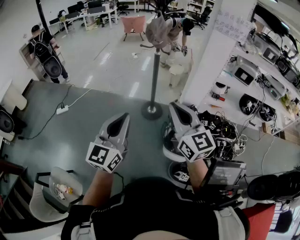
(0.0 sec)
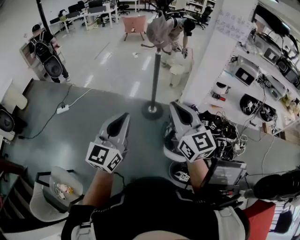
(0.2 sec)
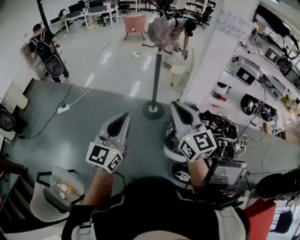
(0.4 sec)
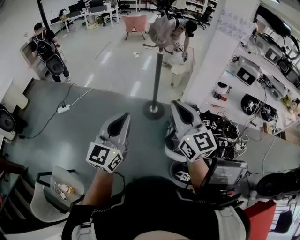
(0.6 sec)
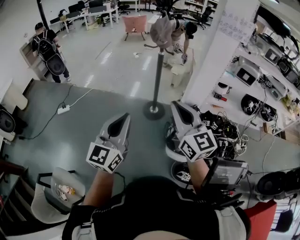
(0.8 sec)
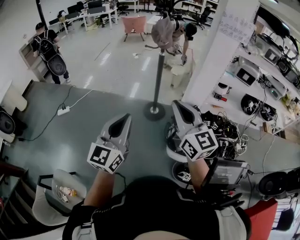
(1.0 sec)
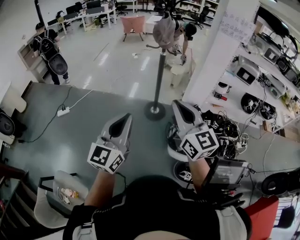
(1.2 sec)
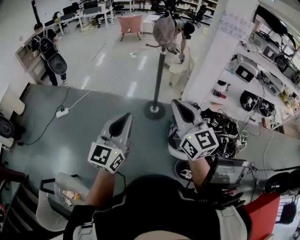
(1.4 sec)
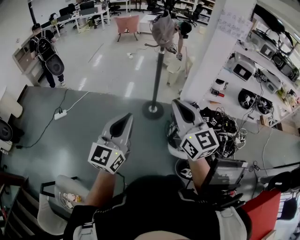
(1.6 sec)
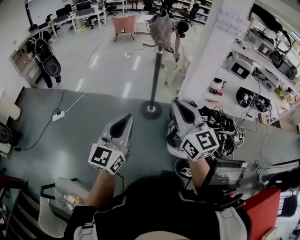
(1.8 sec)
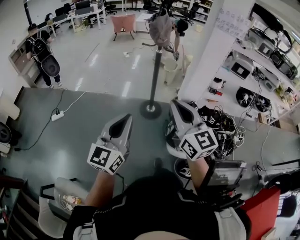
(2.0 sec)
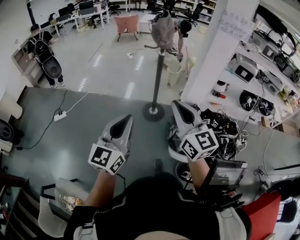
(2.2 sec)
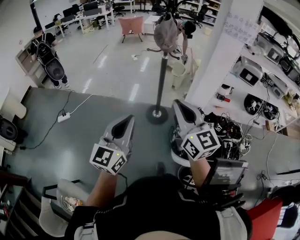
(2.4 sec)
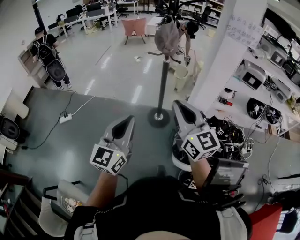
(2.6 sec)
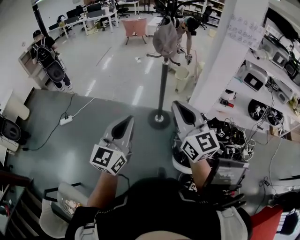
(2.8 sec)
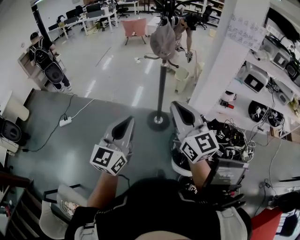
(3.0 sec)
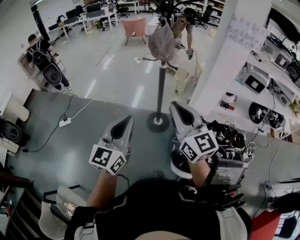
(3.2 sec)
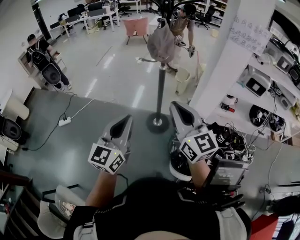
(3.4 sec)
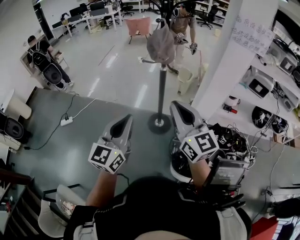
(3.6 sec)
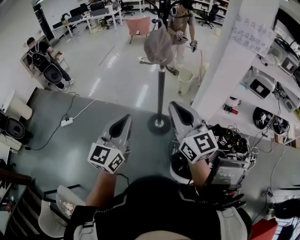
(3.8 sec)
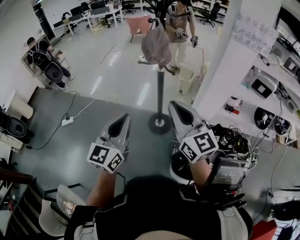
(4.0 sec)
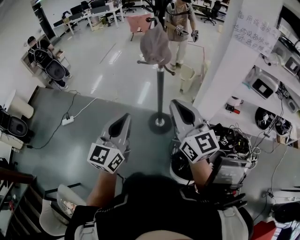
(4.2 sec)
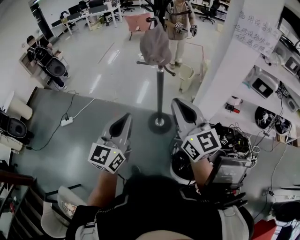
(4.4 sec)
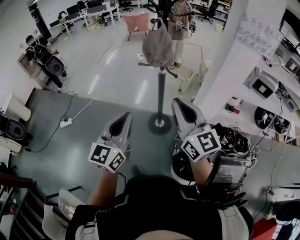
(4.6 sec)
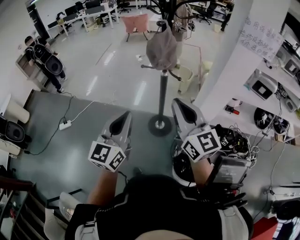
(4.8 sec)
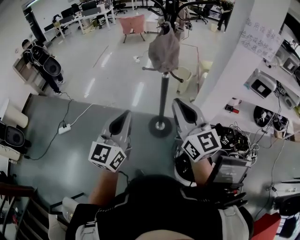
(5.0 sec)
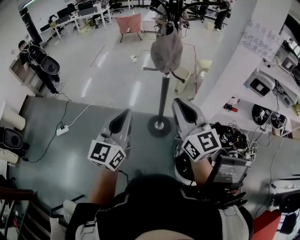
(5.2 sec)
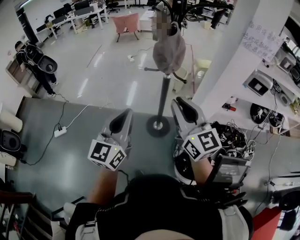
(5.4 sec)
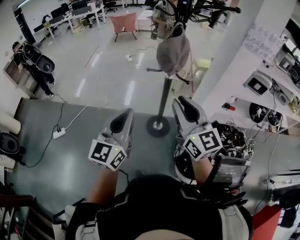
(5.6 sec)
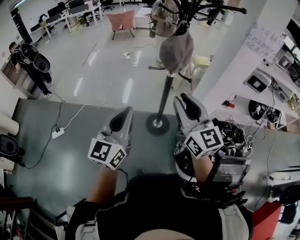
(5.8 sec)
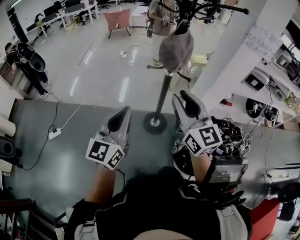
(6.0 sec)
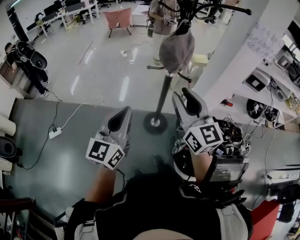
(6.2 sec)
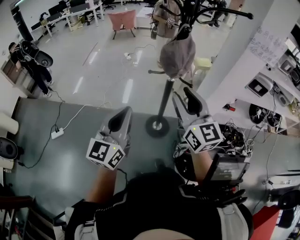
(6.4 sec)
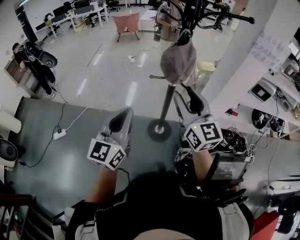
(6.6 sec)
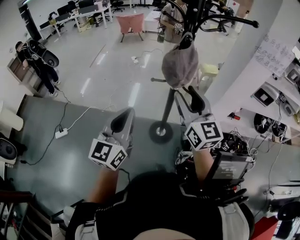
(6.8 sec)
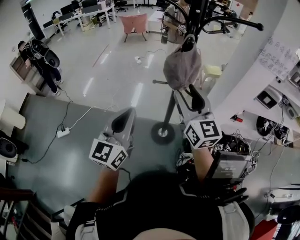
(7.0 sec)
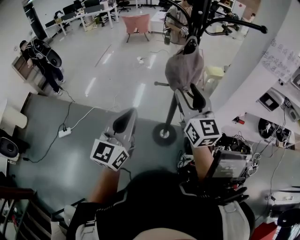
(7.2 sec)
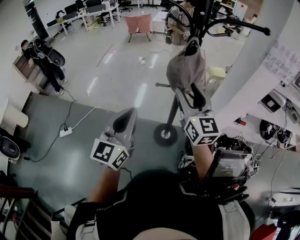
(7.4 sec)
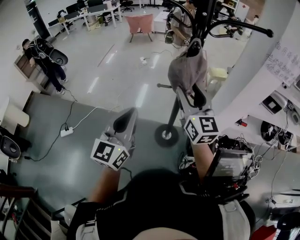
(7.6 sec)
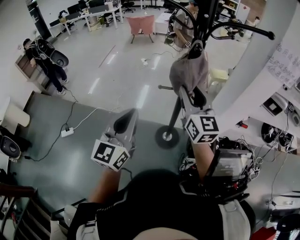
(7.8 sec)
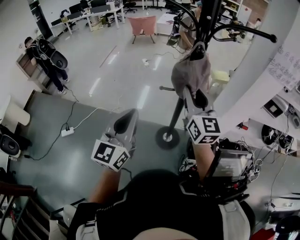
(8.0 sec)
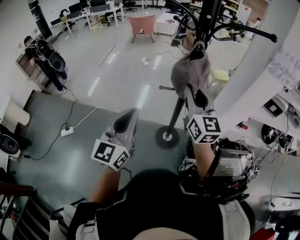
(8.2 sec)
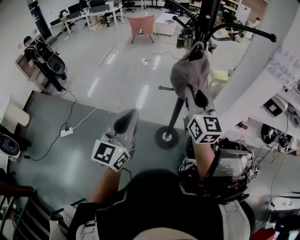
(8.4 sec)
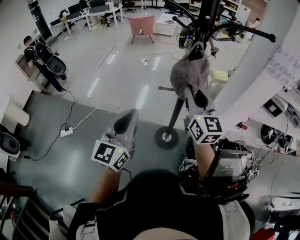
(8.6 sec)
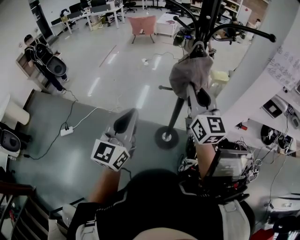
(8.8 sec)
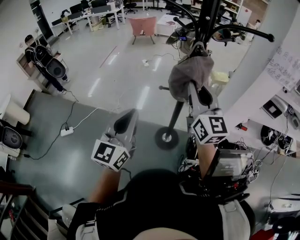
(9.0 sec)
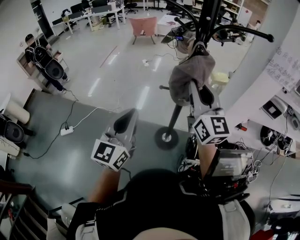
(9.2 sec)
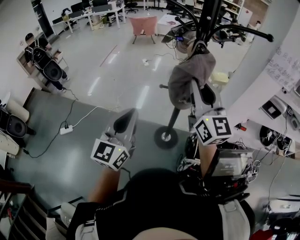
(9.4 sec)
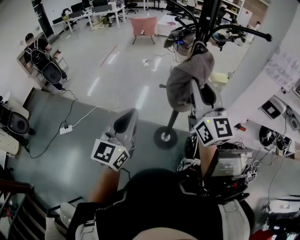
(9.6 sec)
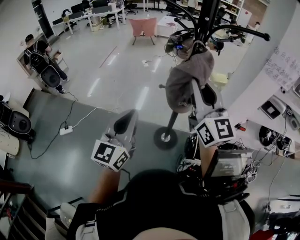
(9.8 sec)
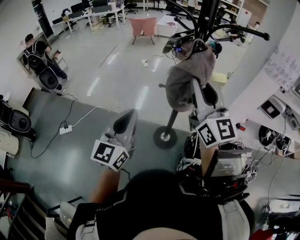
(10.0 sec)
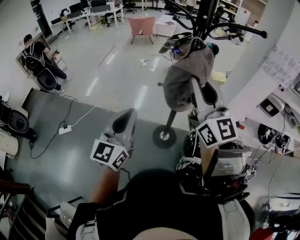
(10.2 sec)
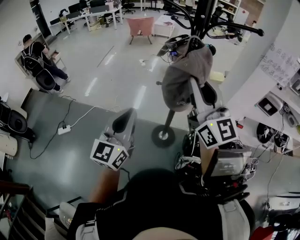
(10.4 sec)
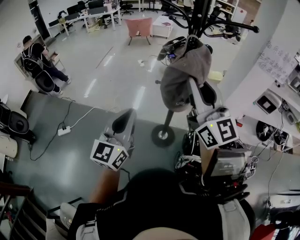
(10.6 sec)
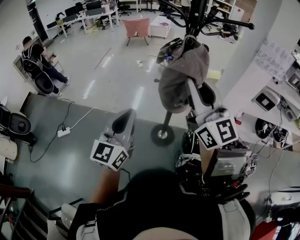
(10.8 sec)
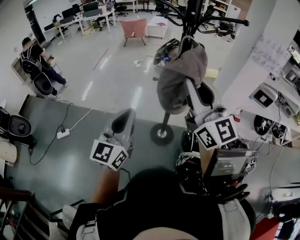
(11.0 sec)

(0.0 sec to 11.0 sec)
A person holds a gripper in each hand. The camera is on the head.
0.0 sec - 1.6 sec: Both grippers travel together to the left, some 5 cm.
1.6 sec - 3.2 sec: The two grippers go approximately 15 cm forward.
3.2 sec - 4.8 sec: Both grippers move forward, some 15 cm.
4.8 sec - 6.2 sec: Both grippers travel together to the left and forward, approximately 10 cm. The right gripper opens.
6.2 sec - 7.8 sec: The left gripper is displaced forward by approximately 5 cm. The right gripper goes approximately 15 cm forward.
7.8 sec - 9.4 sec: The right gripper is displaced upward by some 5 cm.
9.4 sec - 11.0 sec: The right gripper travels backward by roughly 10 cm, while the left gripper shifts roughly 5 cm backward.

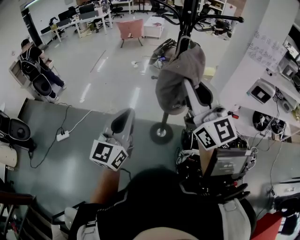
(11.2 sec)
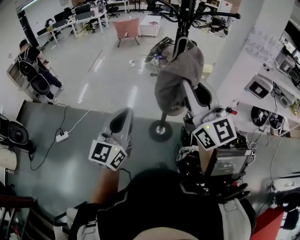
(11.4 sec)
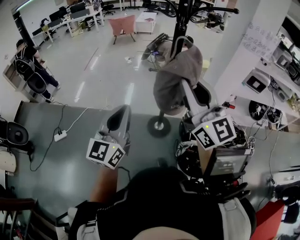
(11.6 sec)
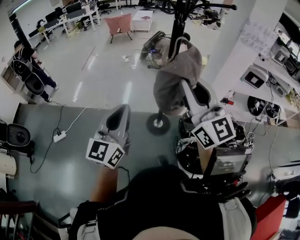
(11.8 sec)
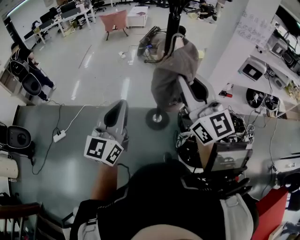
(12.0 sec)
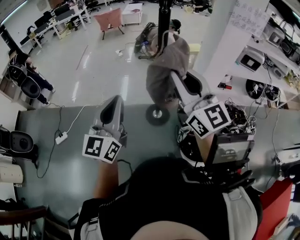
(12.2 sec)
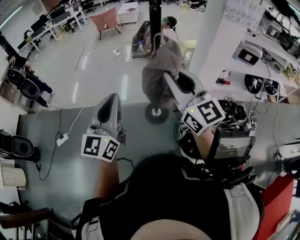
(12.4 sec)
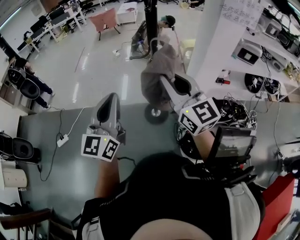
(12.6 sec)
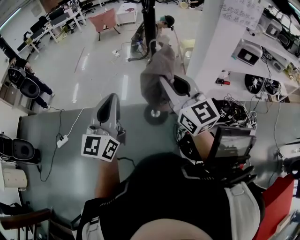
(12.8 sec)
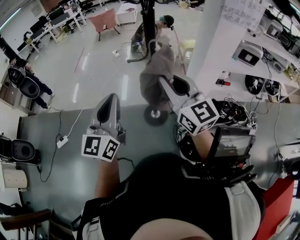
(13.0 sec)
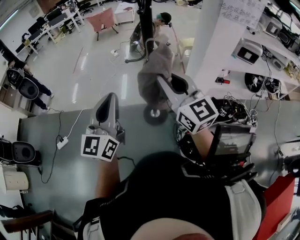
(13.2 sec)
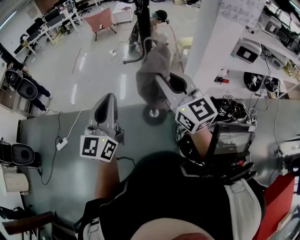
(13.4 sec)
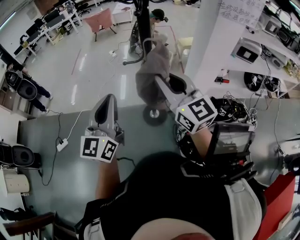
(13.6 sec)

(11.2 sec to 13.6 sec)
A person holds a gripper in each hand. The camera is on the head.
11.2 sec - 12.4 sec: The right gripper moves downward, roughly 5 cm.
12.4 sec - 13.6 sec: The grippers both shift forward by approximately 5 cm.

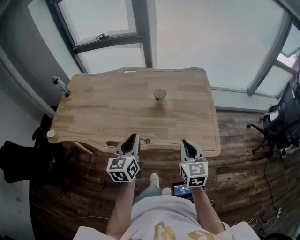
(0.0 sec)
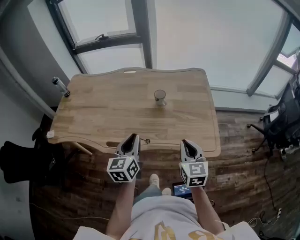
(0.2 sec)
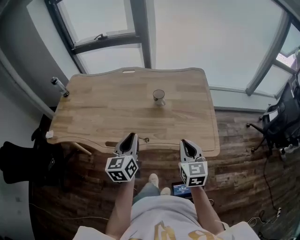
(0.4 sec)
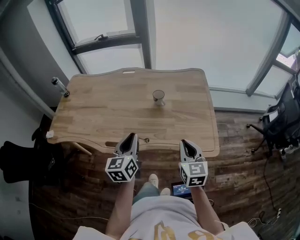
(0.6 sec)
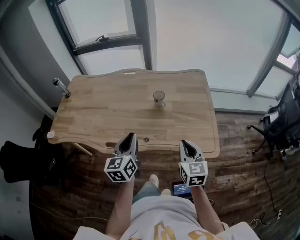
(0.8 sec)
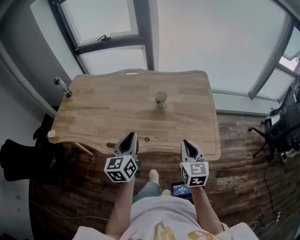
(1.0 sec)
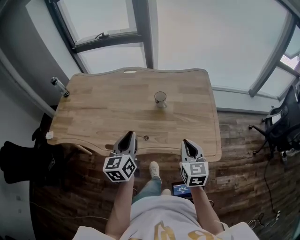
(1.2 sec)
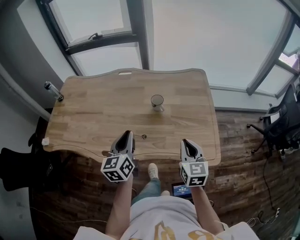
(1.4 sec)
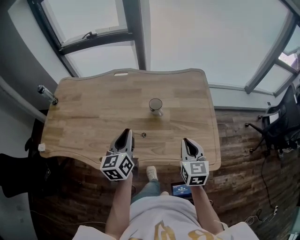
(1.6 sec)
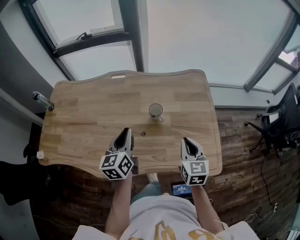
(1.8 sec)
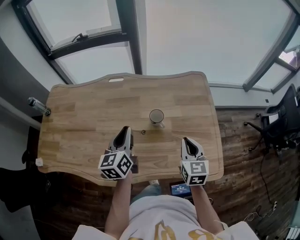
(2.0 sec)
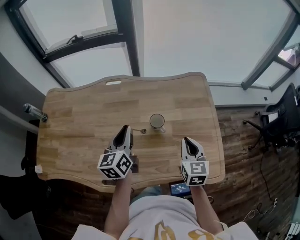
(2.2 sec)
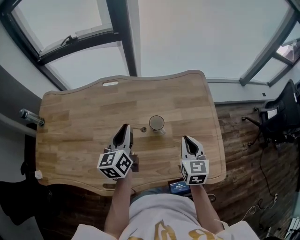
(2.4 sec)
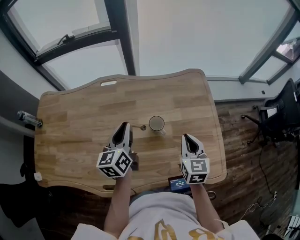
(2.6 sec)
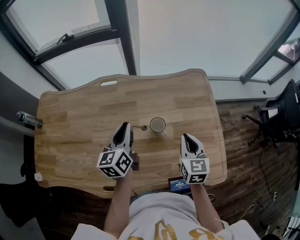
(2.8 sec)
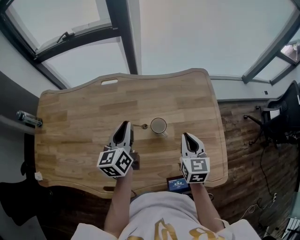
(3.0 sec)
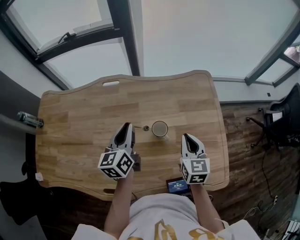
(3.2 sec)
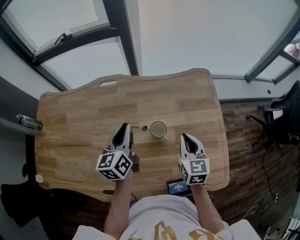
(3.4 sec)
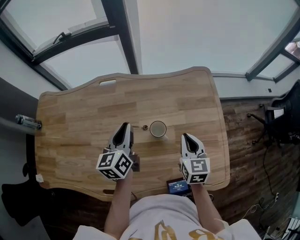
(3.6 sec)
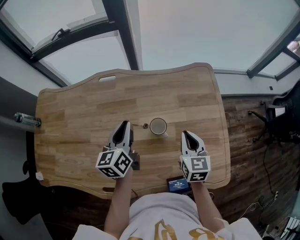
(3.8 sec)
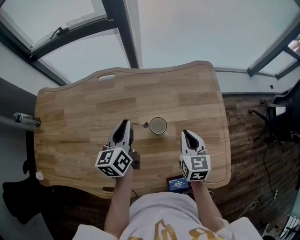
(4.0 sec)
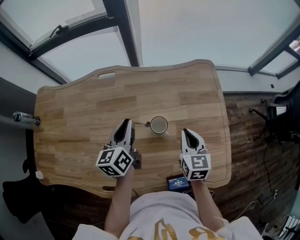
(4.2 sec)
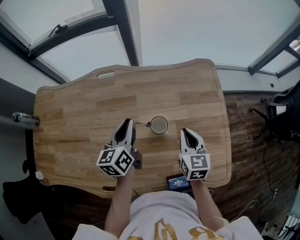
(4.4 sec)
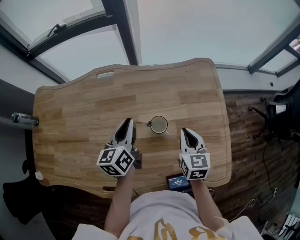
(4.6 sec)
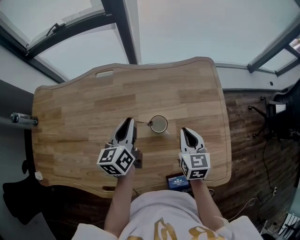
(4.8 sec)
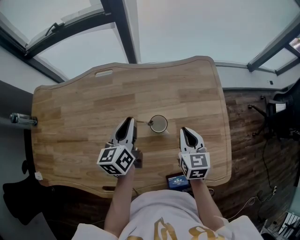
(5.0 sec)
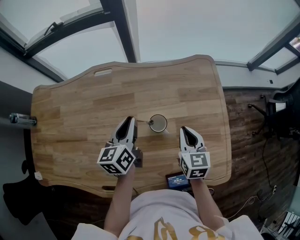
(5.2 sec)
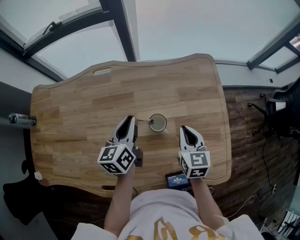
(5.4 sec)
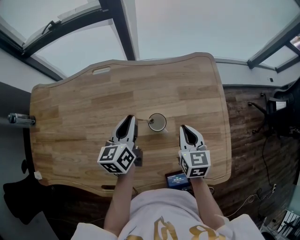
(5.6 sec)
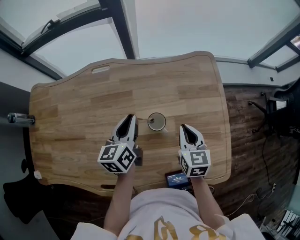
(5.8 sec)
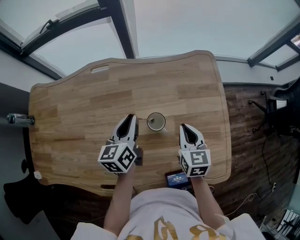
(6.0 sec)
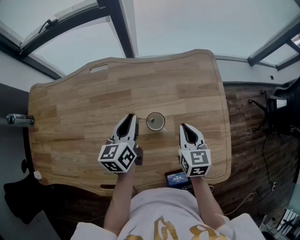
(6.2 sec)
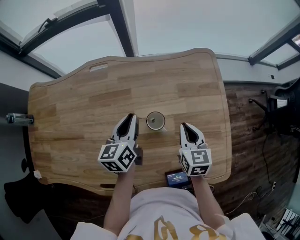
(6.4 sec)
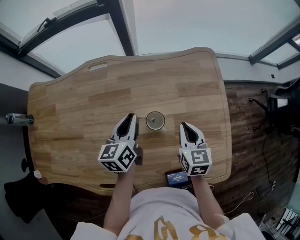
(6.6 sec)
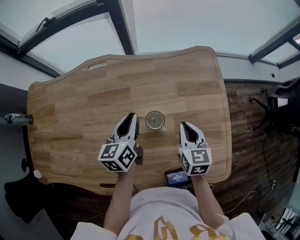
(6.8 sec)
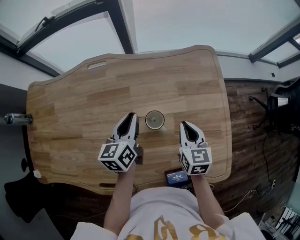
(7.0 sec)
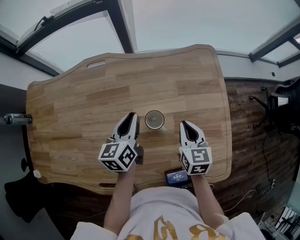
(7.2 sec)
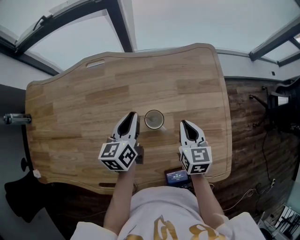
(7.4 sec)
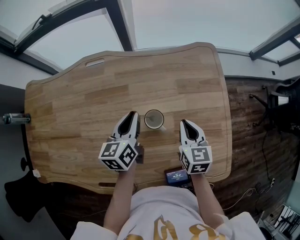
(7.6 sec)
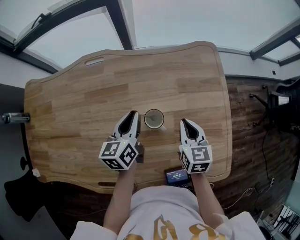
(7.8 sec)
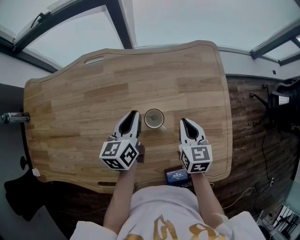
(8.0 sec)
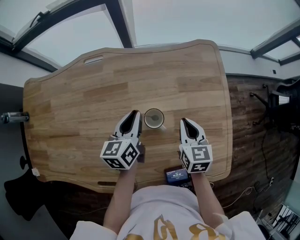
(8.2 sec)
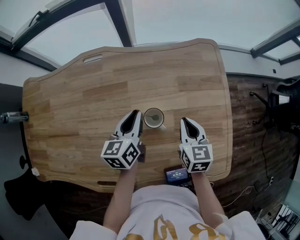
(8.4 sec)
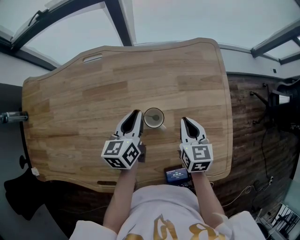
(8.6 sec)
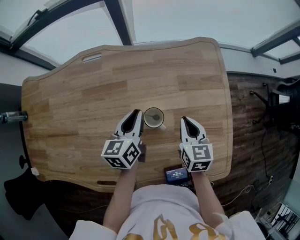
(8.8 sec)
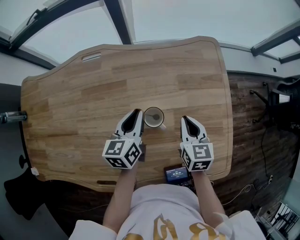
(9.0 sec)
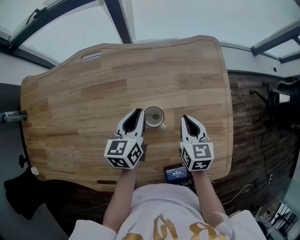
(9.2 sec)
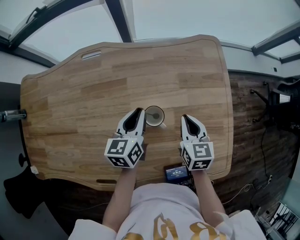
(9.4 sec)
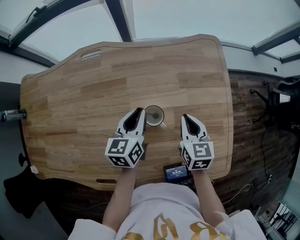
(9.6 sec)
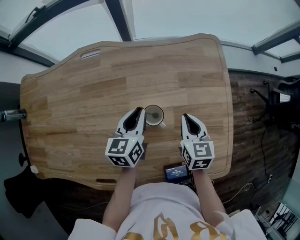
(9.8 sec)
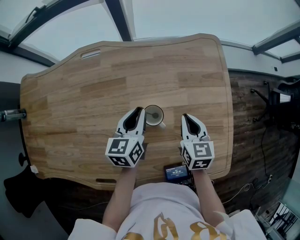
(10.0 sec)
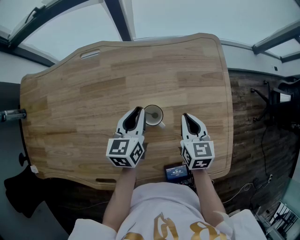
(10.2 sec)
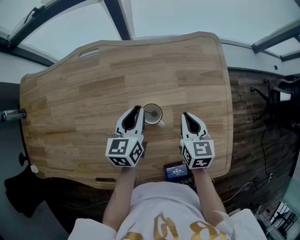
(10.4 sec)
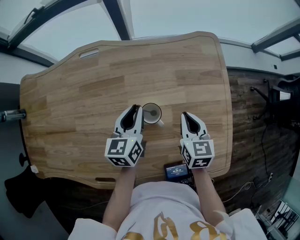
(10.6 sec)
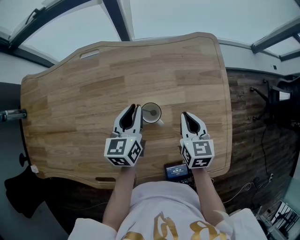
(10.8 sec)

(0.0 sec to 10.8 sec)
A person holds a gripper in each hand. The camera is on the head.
0.0 sec - 1.6 sec: The grippers both shift forward by approximately 15 cm.
1.6 sec - 3.0 sec: Both grippers move forward, roughly 20 cm.
3.0 sec - 4.6 sec: The right gripper moves some 5 cm. Meanwhile the left gripper shifts by some 5 cm.
4.6 sec - 6.2 sec: The grippers stay close to where they were, moving slightly.
6.2 sec - 7.8 sec: The grippers move only a little.
7.8 sec - 10.8 sec: The grippers stay close to where they were, moving slightly.
